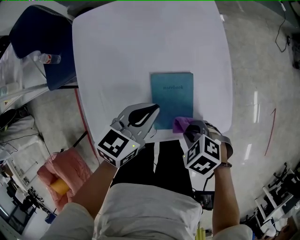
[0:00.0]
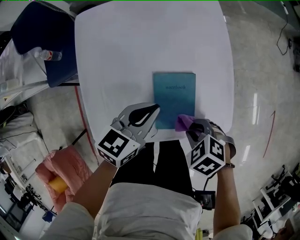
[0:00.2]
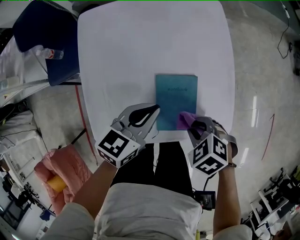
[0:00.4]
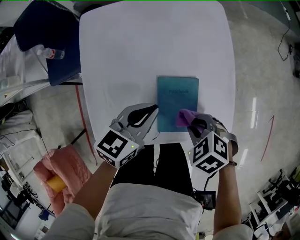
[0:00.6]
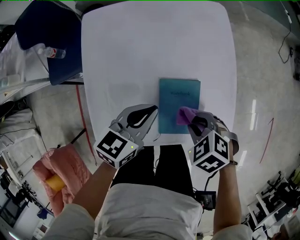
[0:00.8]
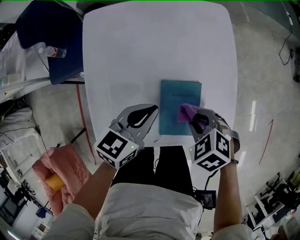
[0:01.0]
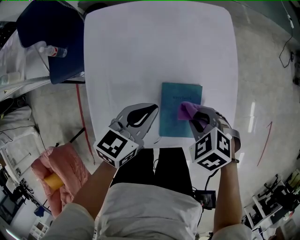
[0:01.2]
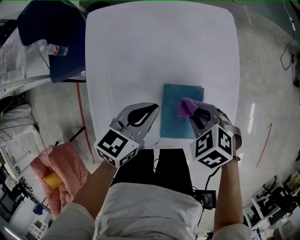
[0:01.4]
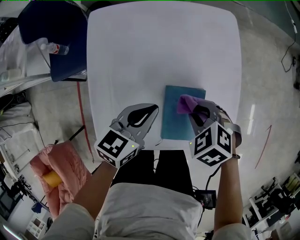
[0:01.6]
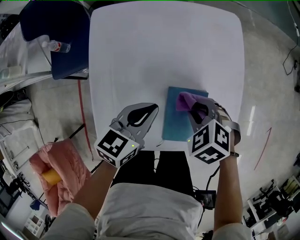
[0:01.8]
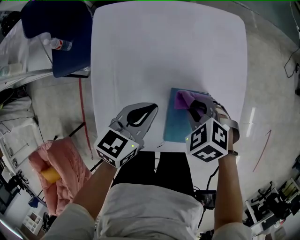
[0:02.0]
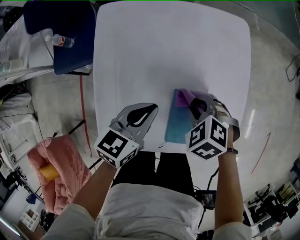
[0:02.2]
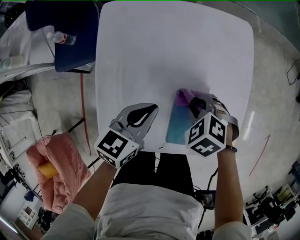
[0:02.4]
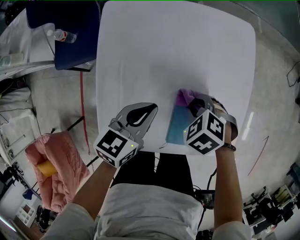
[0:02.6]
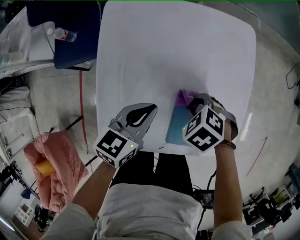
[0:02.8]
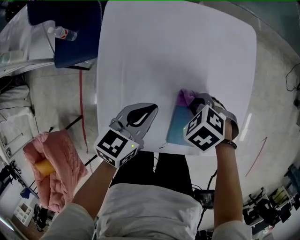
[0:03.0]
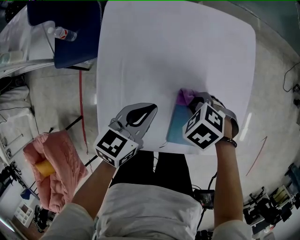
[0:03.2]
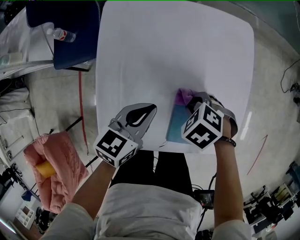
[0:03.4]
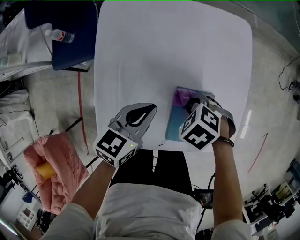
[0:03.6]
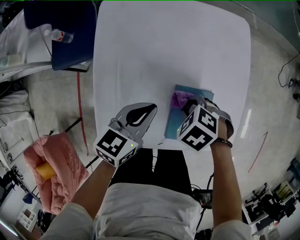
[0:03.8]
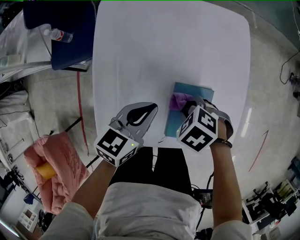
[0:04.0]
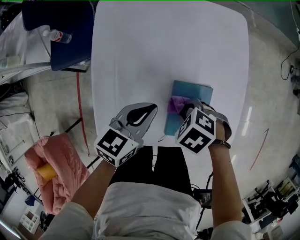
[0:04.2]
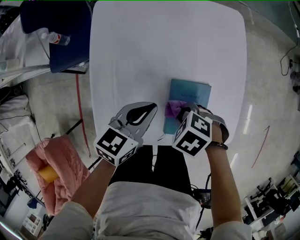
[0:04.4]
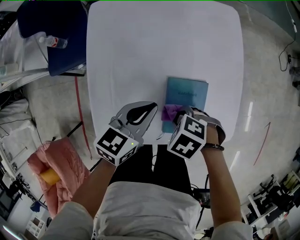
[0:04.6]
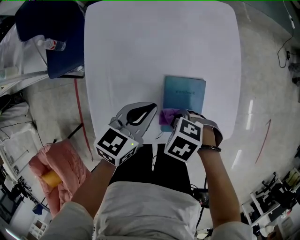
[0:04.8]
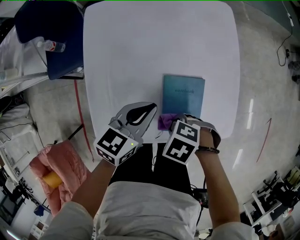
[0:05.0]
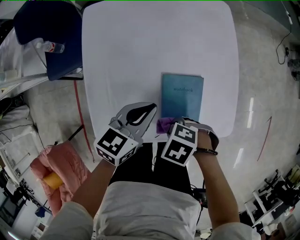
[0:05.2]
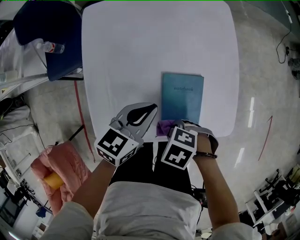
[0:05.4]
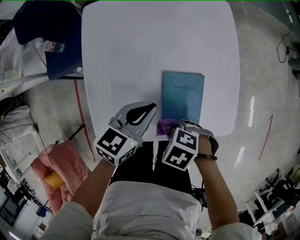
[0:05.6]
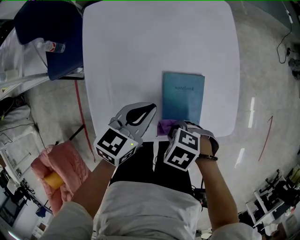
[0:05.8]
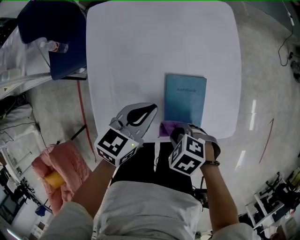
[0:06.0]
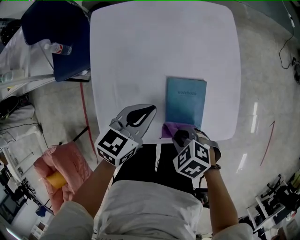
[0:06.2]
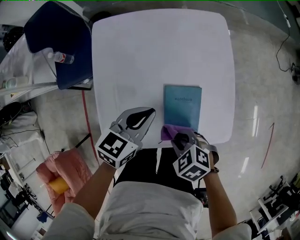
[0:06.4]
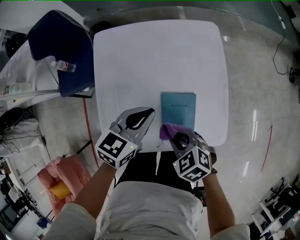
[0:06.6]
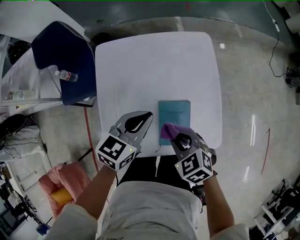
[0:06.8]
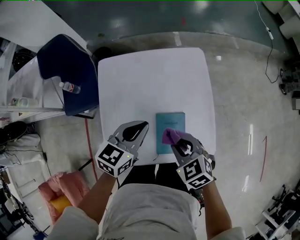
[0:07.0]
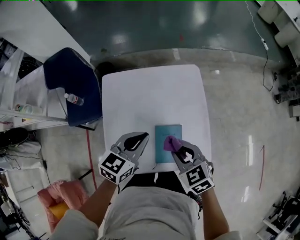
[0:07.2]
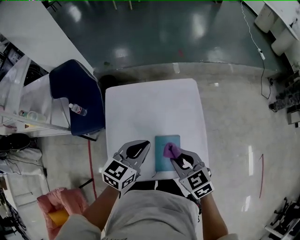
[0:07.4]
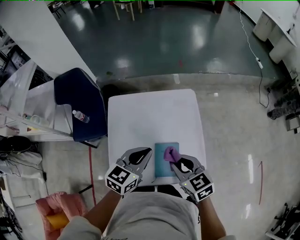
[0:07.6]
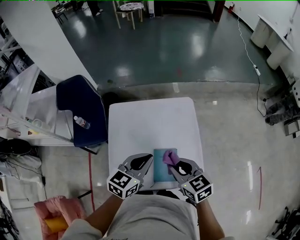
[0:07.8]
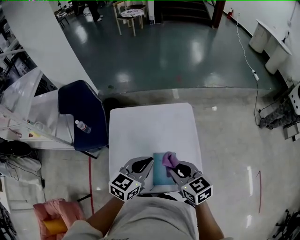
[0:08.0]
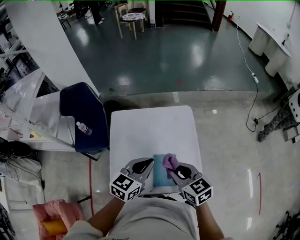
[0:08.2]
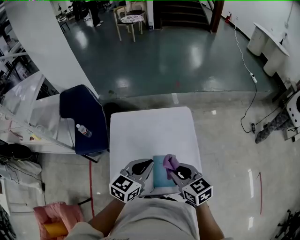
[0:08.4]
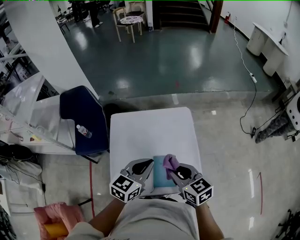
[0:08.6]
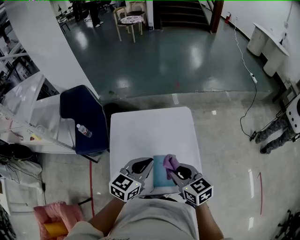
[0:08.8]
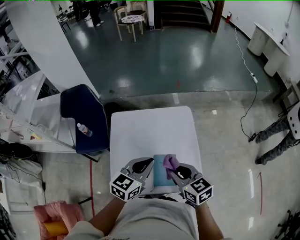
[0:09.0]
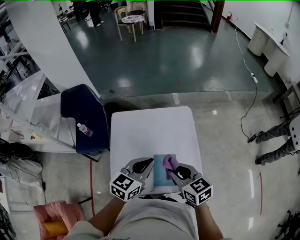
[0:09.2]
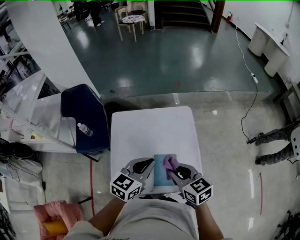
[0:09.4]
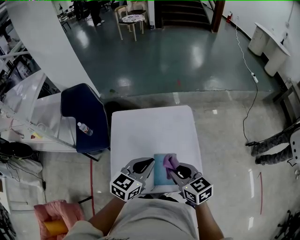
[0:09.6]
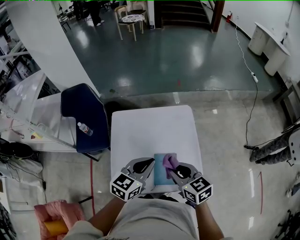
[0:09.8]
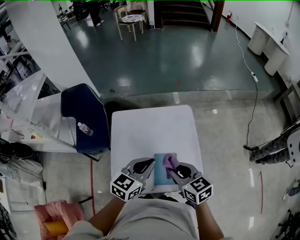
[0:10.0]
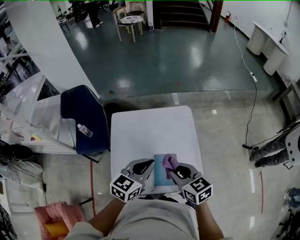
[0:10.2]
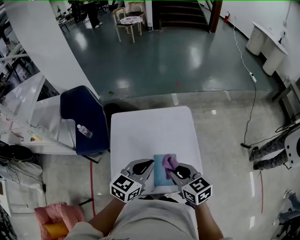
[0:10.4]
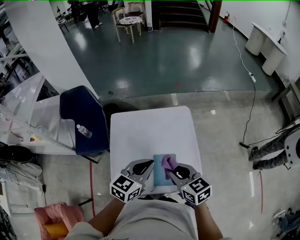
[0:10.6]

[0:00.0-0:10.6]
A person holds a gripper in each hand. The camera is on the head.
0:00.0 to 0:01.6: The left gripper changes place by approximately 5 cm. The right gripper changes place by approximately 15 cm.
0:01.6 to 0:03.0: The right gripper shifts by about 5 cm; the left gripper shifts by about 5 cm.
0:03.0 to 0:04.6: The right gripper ends up some 10 cm from where it was; the left gripper ends up approximately 5 cm from where it was.
0:04.6 to 0:06.0: The right gripper shifts by approximately 5 cm.
0:06.0 to 0:07.6: The two grippers go about 25 cm upward. The right gripper tilts its fingers some 40 degrees upward.
0:07.6 to 0:10.6: The grippers move only a little.

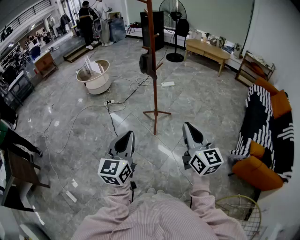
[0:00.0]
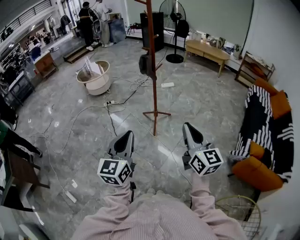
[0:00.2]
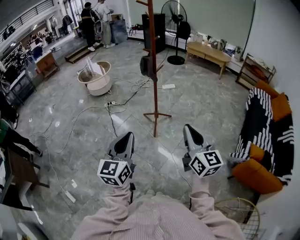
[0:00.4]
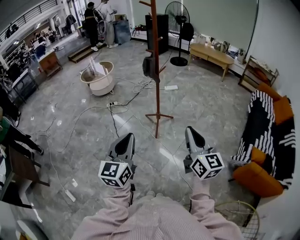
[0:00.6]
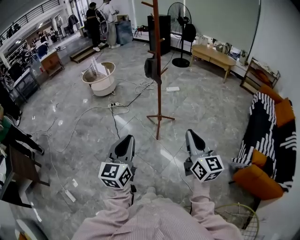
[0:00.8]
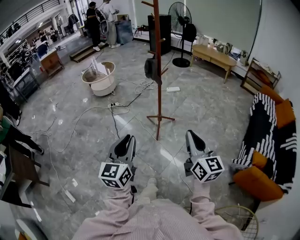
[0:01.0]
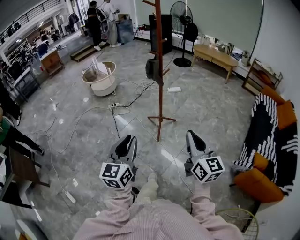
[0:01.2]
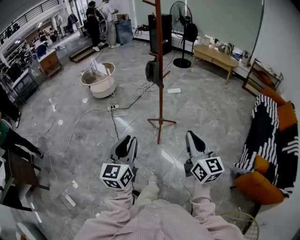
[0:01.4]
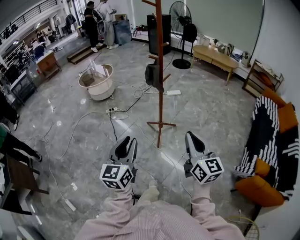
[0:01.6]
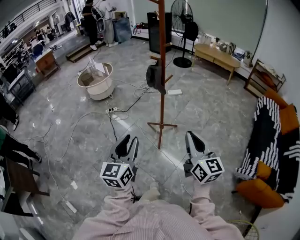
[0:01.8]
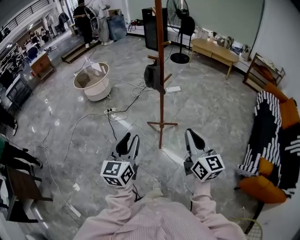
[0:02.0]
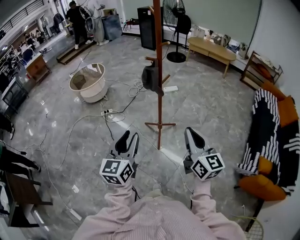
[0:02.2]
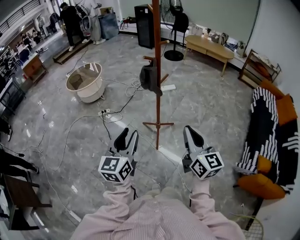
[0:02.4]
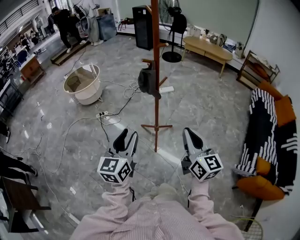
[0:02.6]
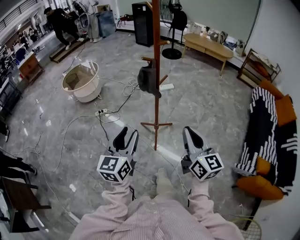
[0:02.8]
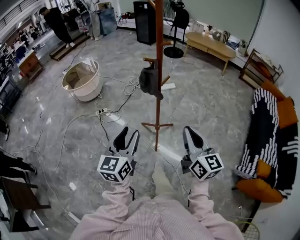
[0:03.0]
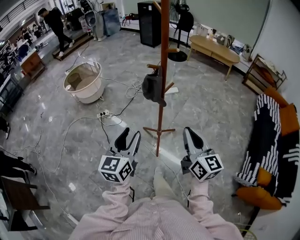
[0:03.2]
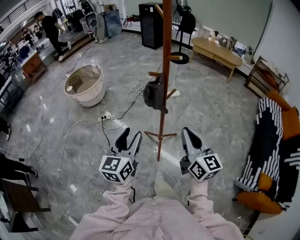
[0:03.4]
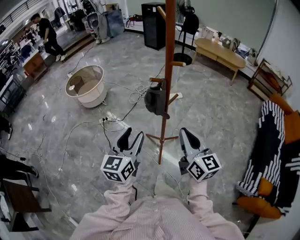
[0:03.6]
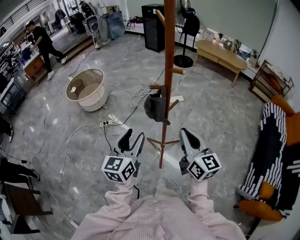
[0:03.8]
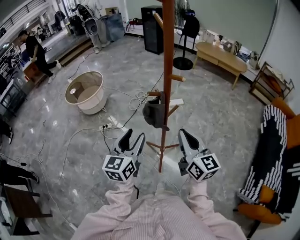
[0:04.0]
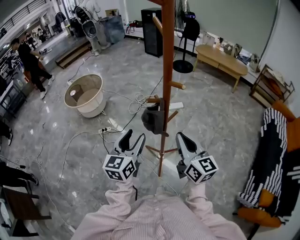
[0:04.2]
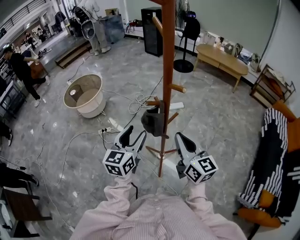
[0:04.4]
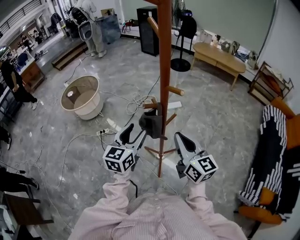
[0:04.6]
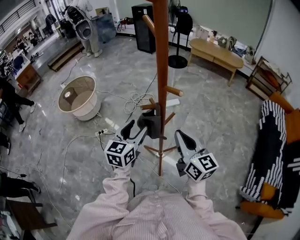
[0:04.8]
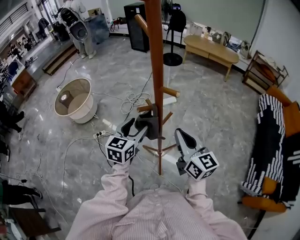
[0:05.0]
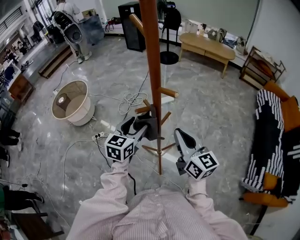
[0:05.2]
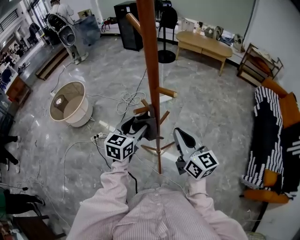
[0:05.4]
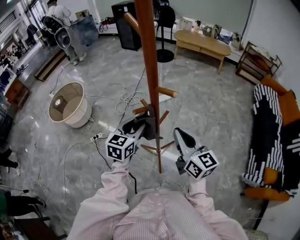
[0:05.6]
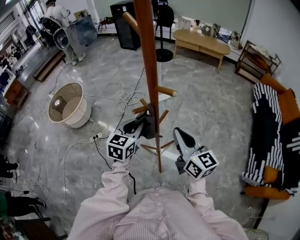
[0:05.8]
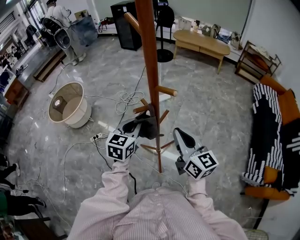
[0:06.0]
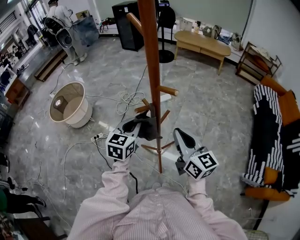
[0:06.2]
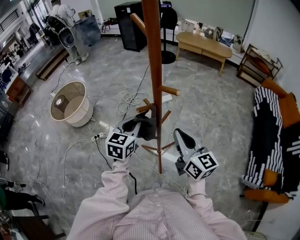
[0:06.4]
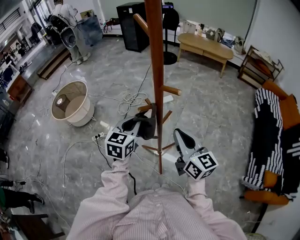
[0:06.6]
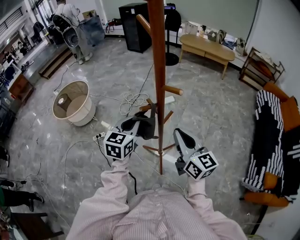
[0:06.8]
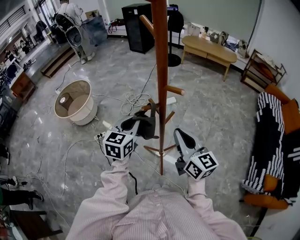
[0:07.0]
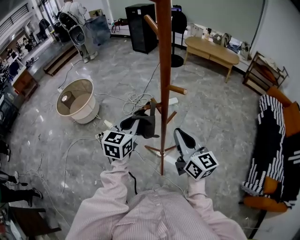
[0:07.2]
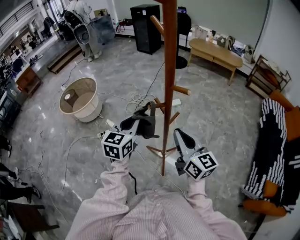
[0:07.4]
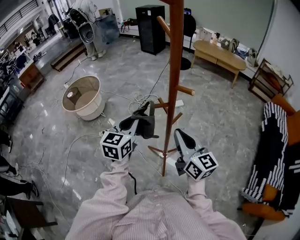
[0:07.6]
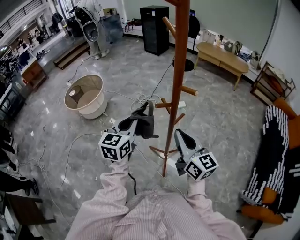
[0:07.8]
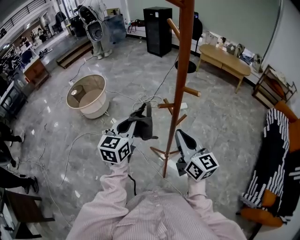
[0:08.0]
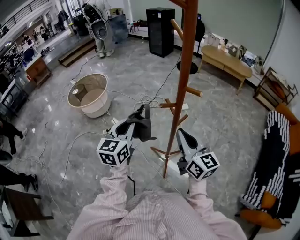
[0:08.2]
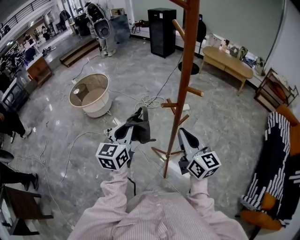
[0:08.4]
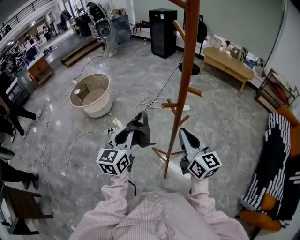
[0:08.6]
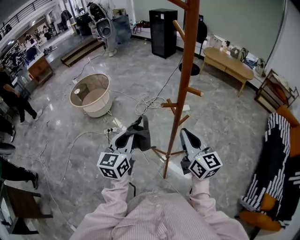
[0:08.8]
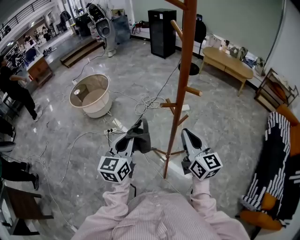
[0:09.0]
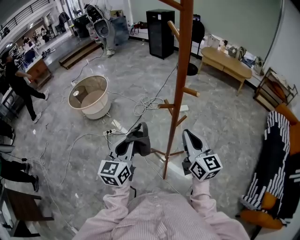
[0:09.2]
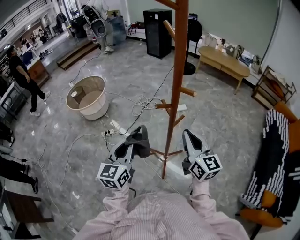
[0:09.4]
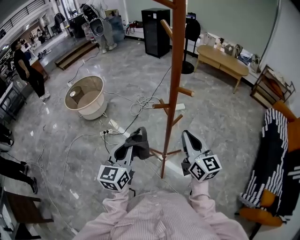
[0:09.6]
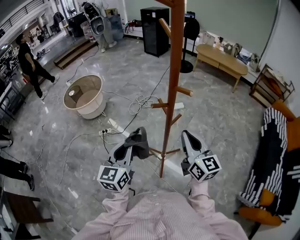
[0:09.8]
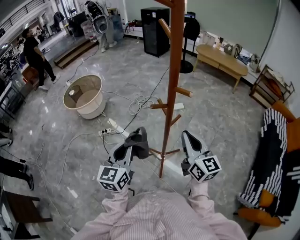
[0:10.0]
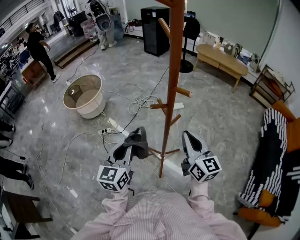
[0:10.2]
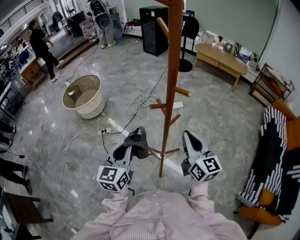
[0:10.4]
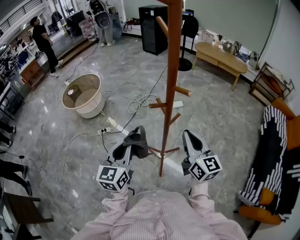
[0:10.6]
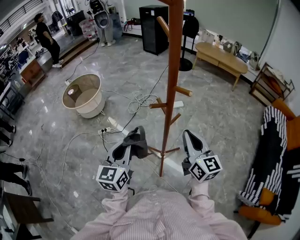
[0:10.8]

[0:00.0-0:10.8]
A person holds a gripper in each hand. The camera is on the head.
0:00.0 to 0:01.6: Both grippers move forward, about 15 cm.
0:01.6 to 0:03.0: The two grippers go about 20 cm forward.
0:03.0 to 0:04.6: The two grippers go about 30 cm forward.
0:04.6 to 0:06.2: The left gripper shifts about 5 cm forward, and closes up.
0:06.2 to 0:07.8: The left gripper is displaced to the left and upward by roughly 10 cm. Meanwhile the right gripper is displaced to the left by about 5 cm.
0:07.8 to 0:09.2: The left gripper heads backward, covering approximately 10 cm.
0:09.2 to 0:10.8: The grippers stay close to where they were, moving slightly.

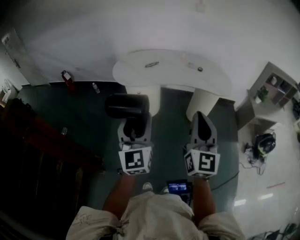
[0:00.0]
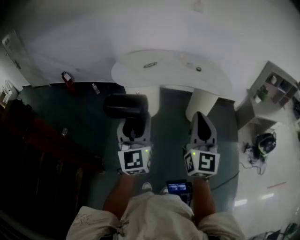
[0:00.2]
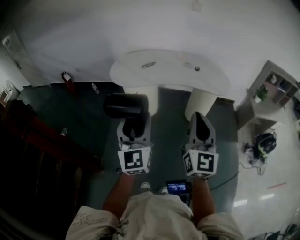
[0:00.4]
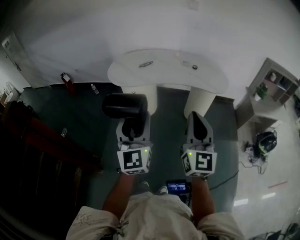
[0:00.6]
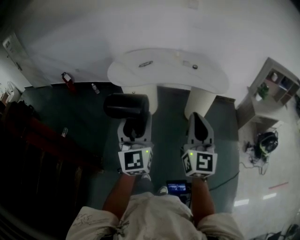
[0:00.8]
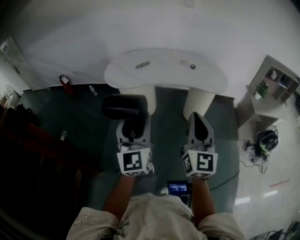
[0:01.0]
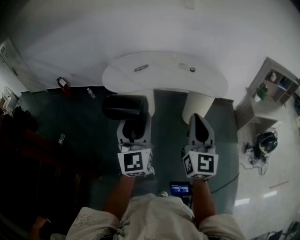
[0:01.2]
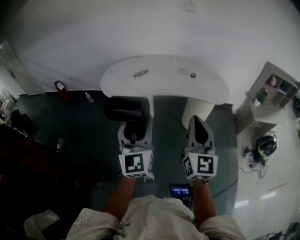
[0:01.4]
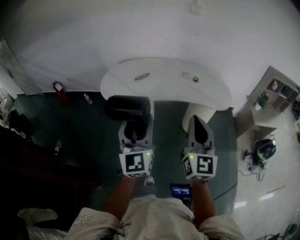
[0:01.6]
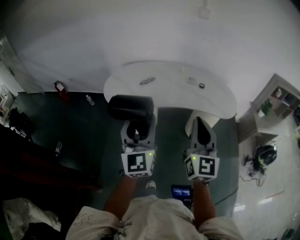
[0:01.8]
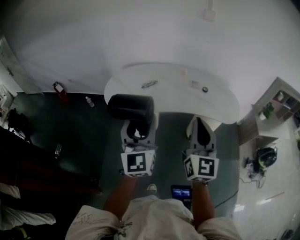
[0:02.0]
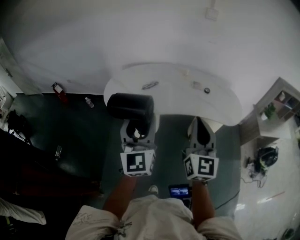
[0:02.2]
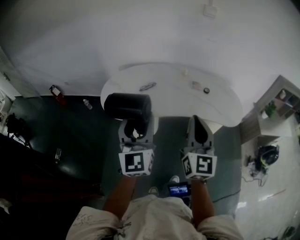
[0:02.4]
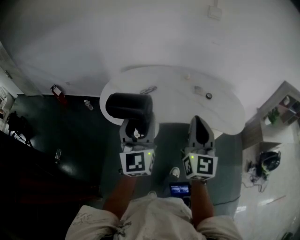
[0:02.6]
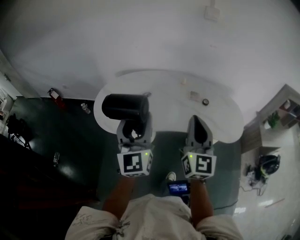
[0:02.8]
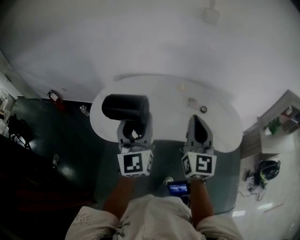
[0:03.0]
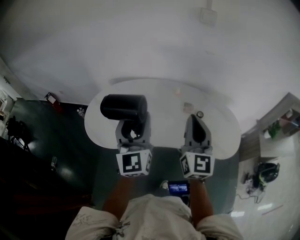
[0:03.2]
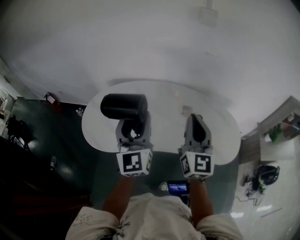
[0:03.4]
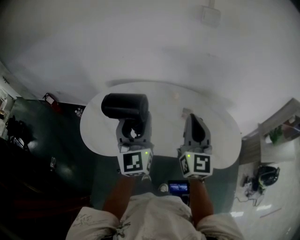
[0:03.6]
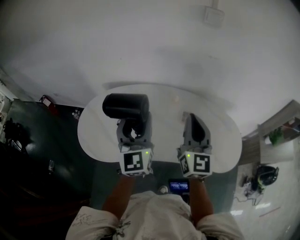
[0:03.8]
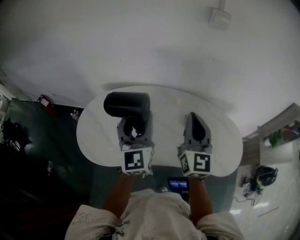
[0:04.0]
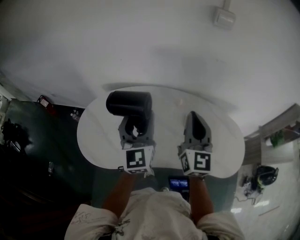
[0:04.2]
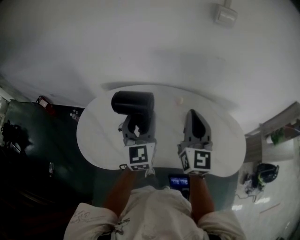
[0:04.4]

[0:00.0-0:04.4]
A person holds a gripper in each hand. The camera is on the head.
0:00.0 to 0:01.4: Both grippers travel together forward and to the right, about 10 cm.
0:01.4 to 0:03.0: The two grippers go approximately 35 cm forward.
0:03.0 to 0:04.4: Both grippers move forward, approximately 20 cm.
